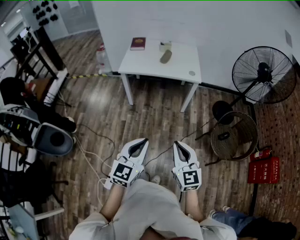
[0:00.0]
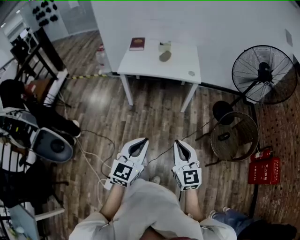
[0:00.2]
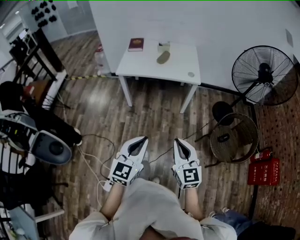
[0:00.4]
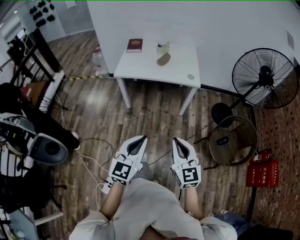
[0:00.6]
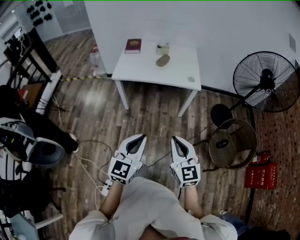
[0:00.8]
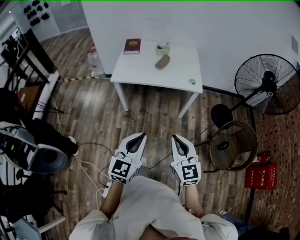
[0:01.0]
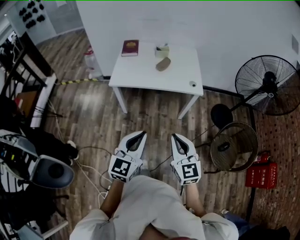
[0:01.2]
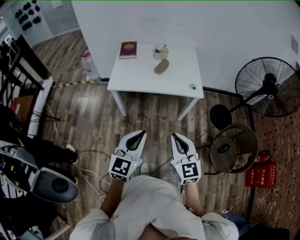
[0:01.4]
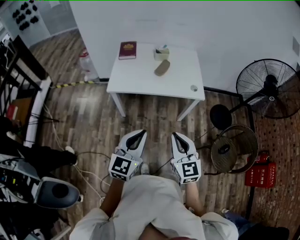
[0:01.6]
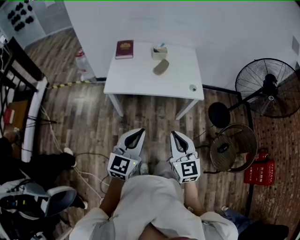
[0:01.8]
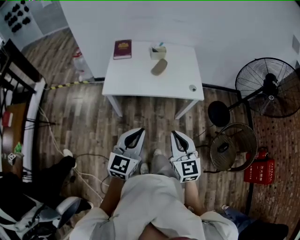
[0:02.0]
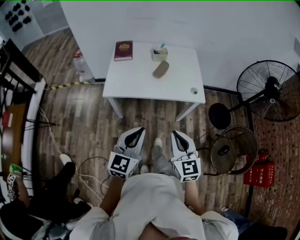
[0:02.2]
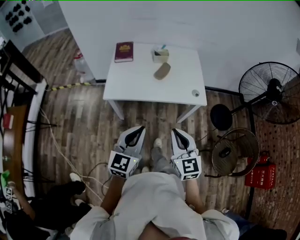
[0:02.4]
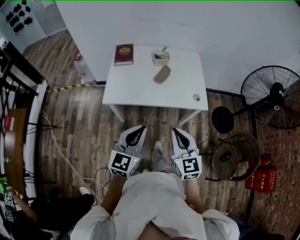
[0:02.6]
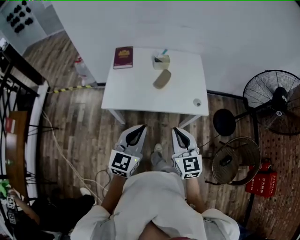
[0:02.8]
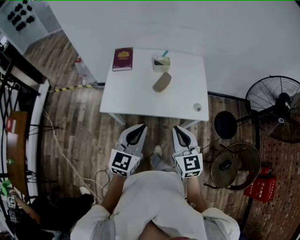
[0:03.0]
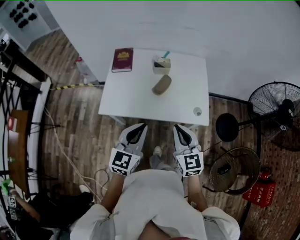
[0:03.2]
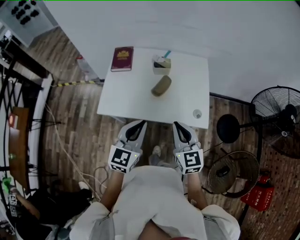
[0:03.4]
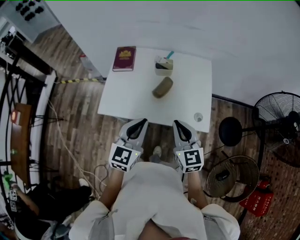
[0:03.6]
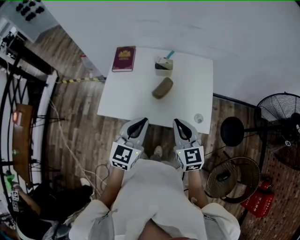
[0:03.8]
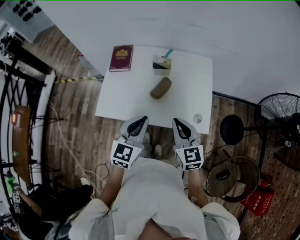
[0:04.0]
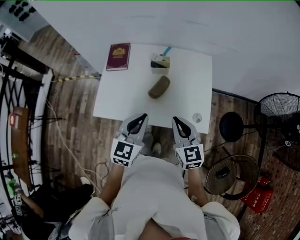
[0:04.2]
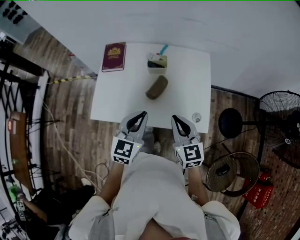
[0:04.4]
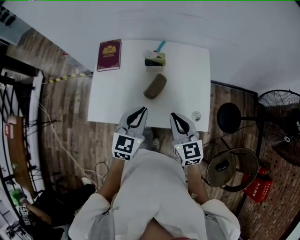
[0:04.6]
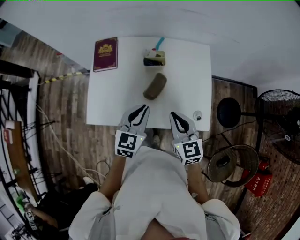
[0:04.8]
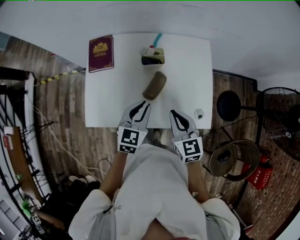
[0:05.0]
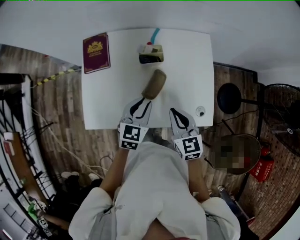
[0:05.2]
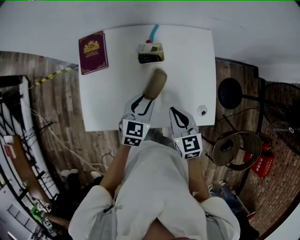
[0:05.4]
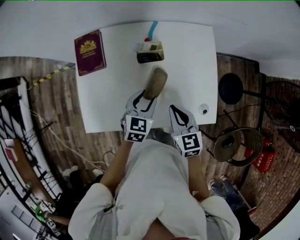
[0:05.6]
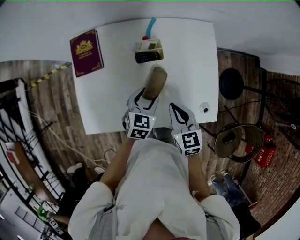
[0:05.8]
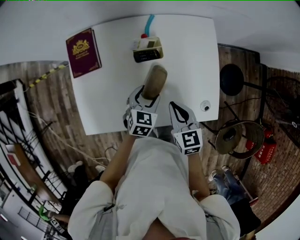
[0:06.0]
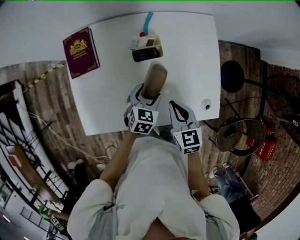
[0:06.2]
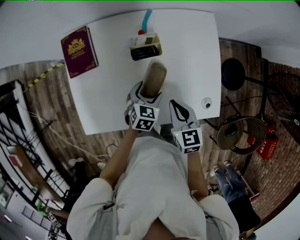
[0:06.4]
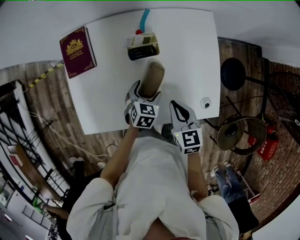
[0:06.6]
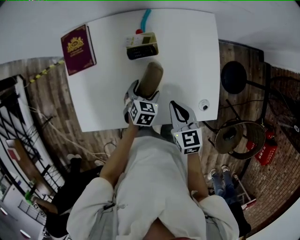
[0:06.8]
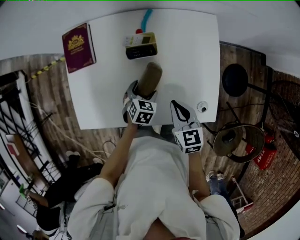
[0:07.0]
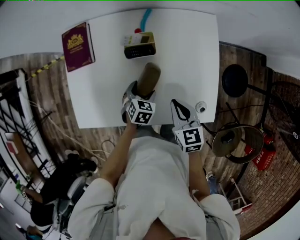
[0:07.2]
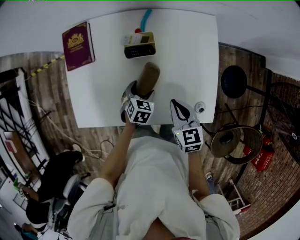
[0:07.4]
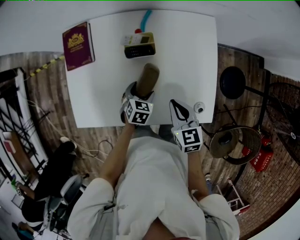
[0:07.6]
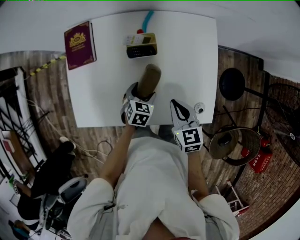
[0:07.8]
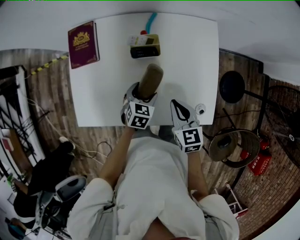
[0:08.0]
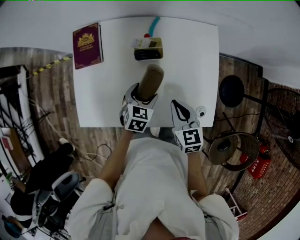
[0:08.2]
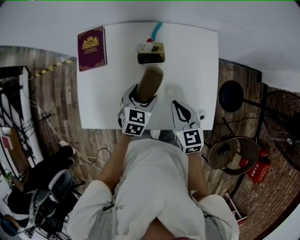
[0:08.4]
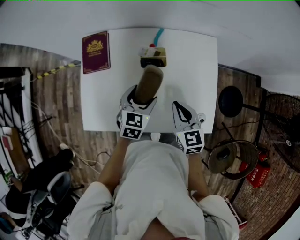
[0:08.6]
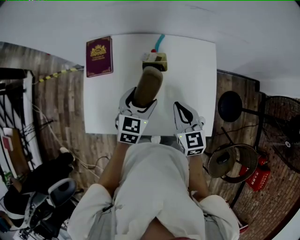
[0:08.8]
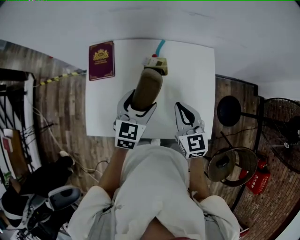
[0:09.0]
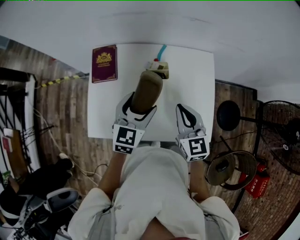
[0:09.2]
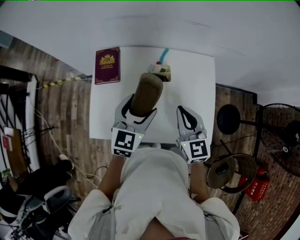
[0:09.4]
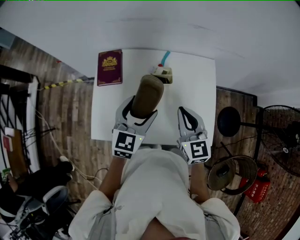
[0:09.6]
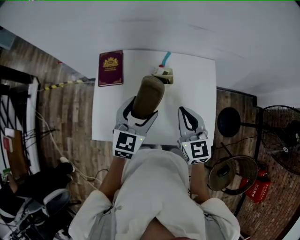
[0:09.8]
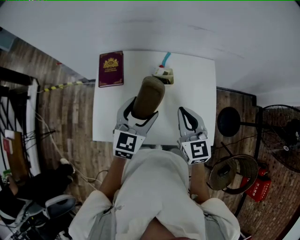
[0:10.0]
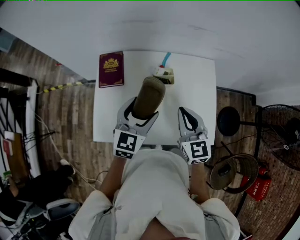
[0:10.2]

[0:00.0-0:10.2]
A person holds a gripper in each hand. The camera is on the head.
0:00.0 to 0:01.4: The two grippers go approximately 25 cm forward.
0:01.4 to 0:03.0: The grippers both shift forward by roughly 25 cm.
0:03.0 to 0:04.4: Both grippers move forward, some 15 cm.
0:04.4 to 0:05.8: The right gripper travels downward and forward by roughly 15 cm, and swivels approximately 20 degrees. Meanwhile the left gripper shifts approximately 25 cm downward and forward, turns by approximately 30 degrees, and opens up.
0:05.8 to 0:07.2: The left gripper goes roughly 10 cm downward. Meanwhile the right gripper ends up some 5 cm from where it was.
0:07.2 to 0:08.8: The right gripper goes roughly 10 cm upward. The left gripper goes roughly 20 cm upward, and rotates some 30 degrees.
0:08.8 to 0:10.2: The two grippers go roughly 10 cm upward.

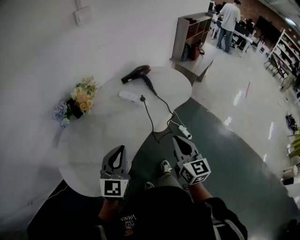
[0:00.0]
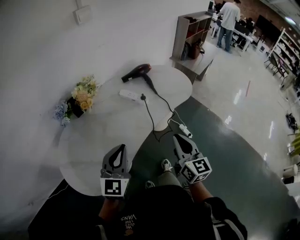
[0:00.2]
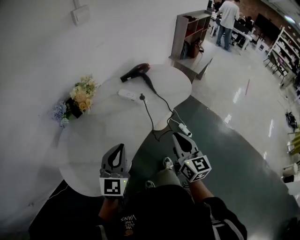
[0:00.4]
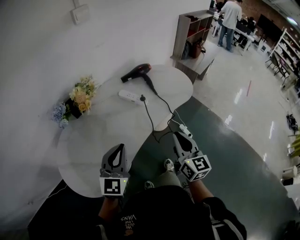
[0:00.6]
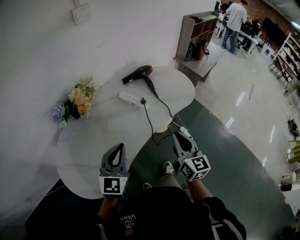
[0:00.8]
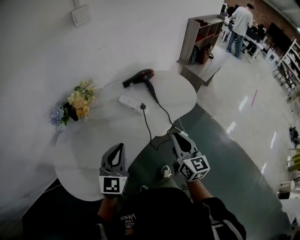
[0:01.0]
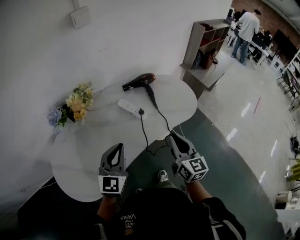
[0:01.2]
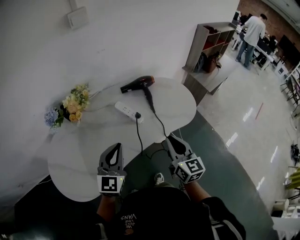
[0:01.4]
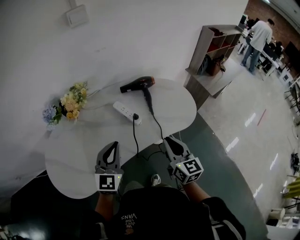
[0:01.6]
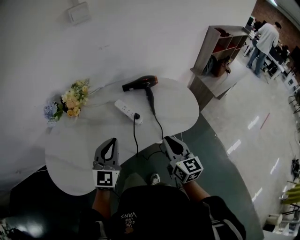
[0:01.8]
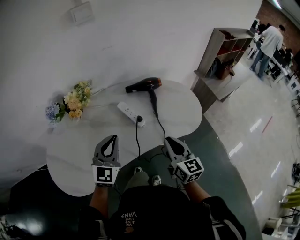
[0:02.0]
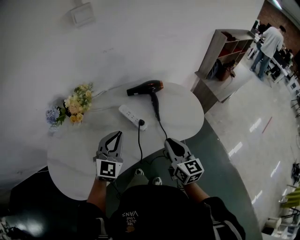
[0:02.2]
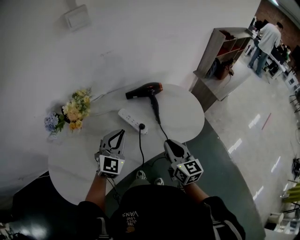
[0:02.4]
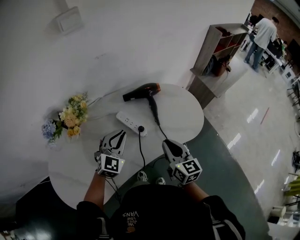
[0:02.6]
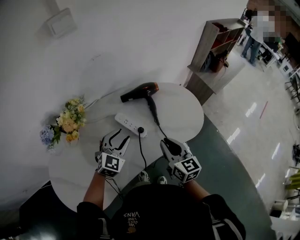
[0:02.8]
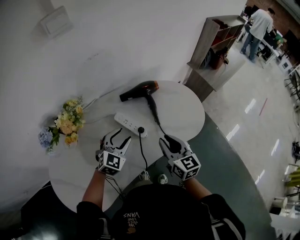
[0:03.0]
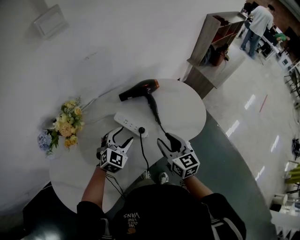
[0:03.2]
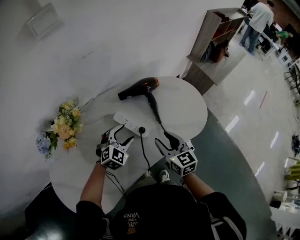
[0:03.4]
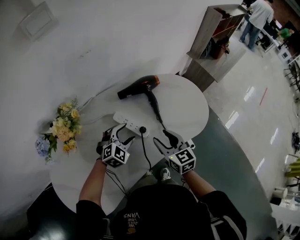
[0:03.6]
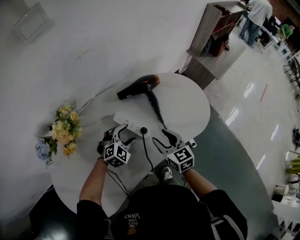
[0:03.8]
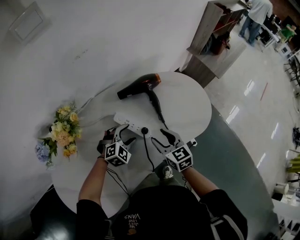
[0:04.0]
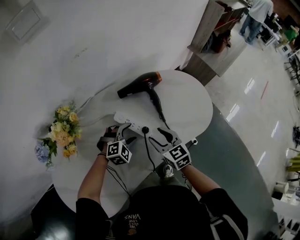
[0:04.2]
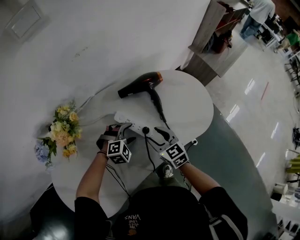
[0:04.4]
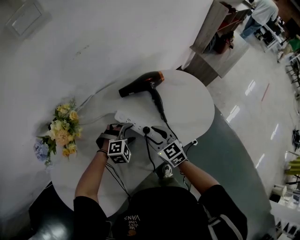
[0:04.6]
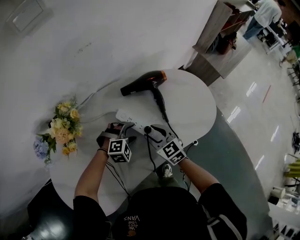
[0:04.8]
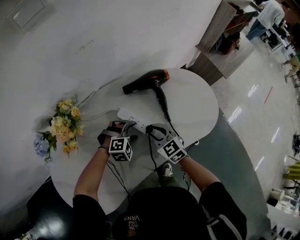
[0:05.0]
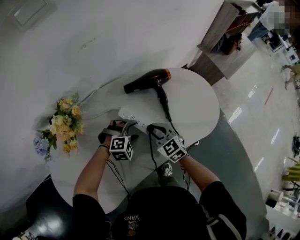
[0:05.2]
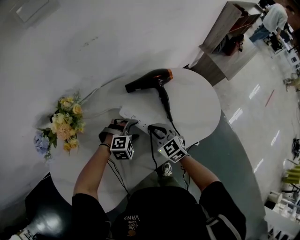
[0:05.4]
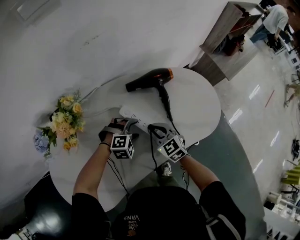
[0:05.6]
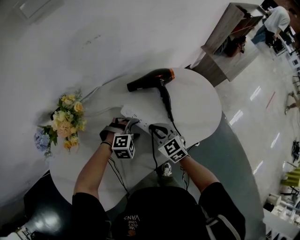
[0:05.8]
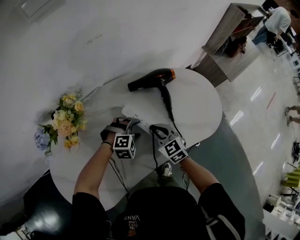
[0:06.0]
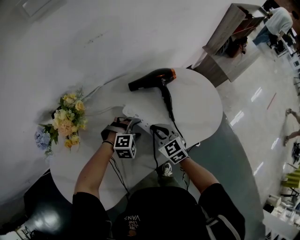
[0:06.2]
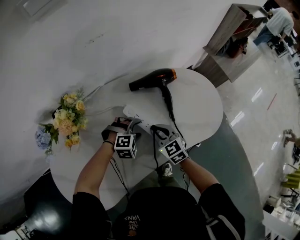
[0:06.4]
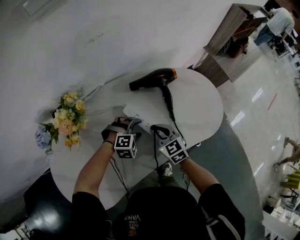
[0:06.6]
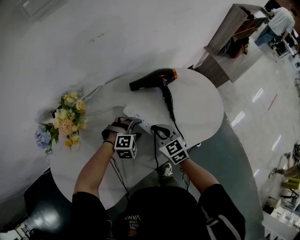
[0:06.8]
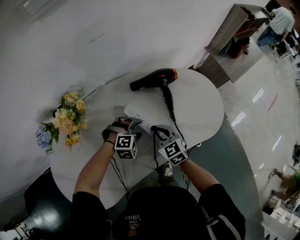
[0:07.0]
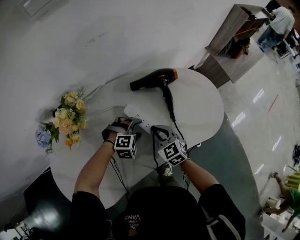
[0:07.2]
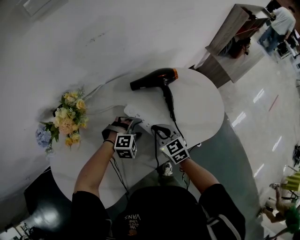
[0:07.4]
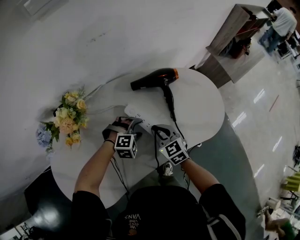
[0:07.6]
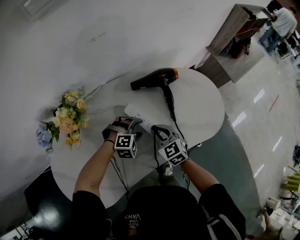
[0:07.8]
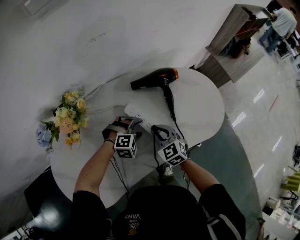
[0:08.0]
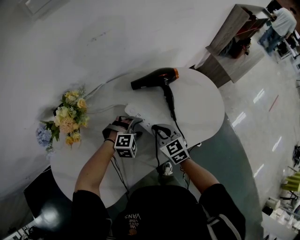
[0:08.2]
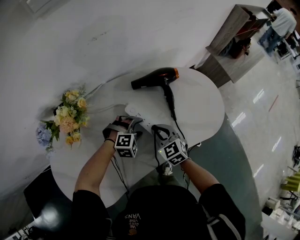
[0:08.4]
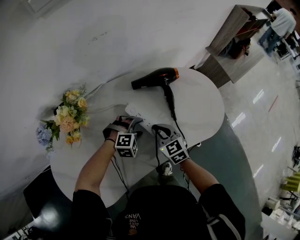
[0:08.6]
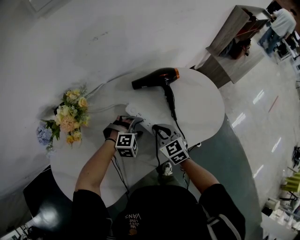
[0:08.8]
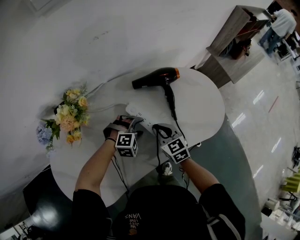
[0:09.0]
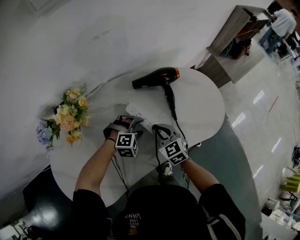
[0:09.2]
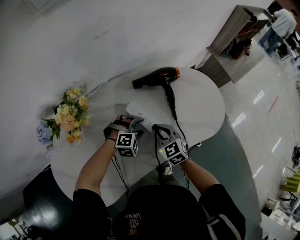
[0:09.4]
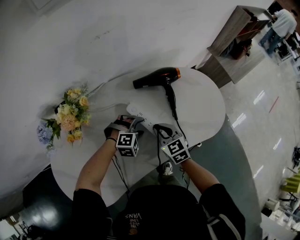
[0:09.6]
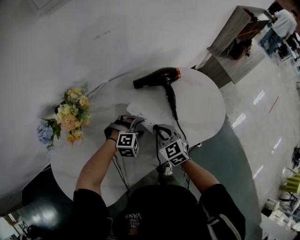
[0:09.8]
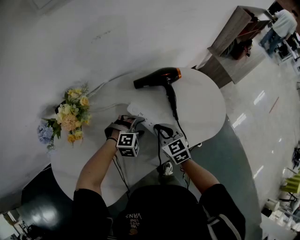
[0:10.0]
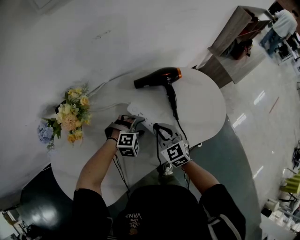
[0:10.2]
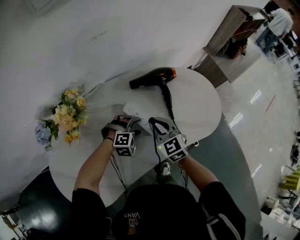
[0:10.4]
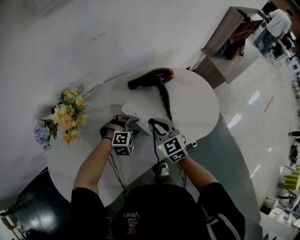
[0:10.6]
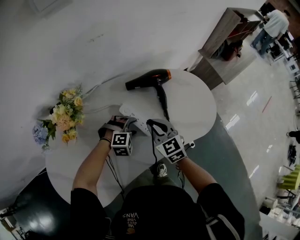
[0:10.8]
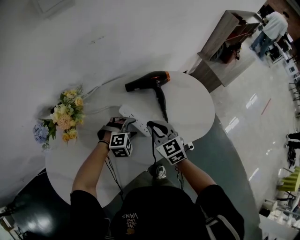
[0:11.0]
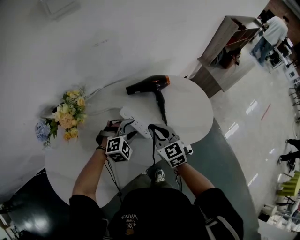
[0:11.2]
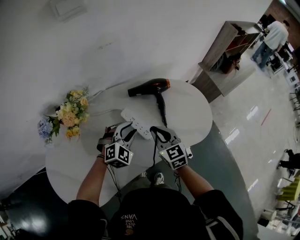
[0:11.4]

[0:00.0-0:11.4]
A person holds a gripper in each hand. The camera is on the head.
0:00.0 to 0:01.4: Both grippers travel together forward and to the right, roughly 20 cm.
0:01.4 to 0:02.8: The left gripper heads forward and downward, covering some 20 cm, changes its angle by some 30 degrees, and opens up. Meanwhile the right gripper shifts roughly 15 cm forward and downward.
0:02.8 to 0:04.2: The right gripper moves downward, forward and to the left, about 15 cm, and opens; the left gripper heads downward, covering about 15 cm, rotates some 40 degrees, and opens.
0:04.2 to 0:05.6: The right gripper ends up about 5 cm from where it was, rotates some 20 degrees, and closes its fingers.
0:05.6 to 0:10.0: There are only small adjustments of the grippers.
0:10.0 to 0:11.4: Both grippers move upward, about 10 cm. The left gripper swivels approximately 30 degrees.

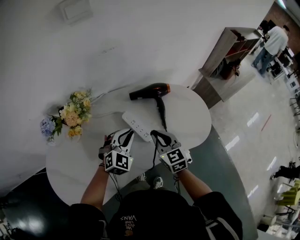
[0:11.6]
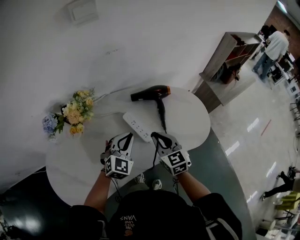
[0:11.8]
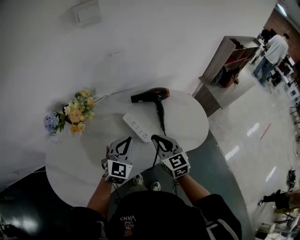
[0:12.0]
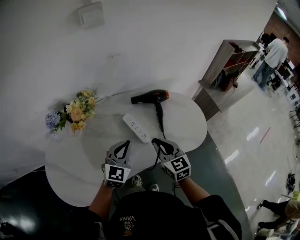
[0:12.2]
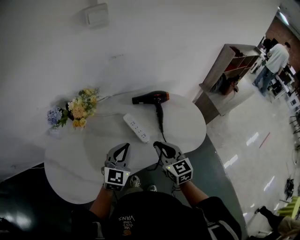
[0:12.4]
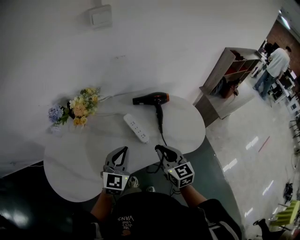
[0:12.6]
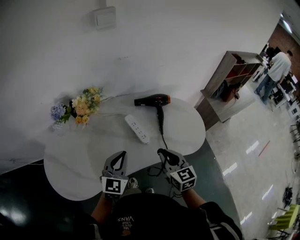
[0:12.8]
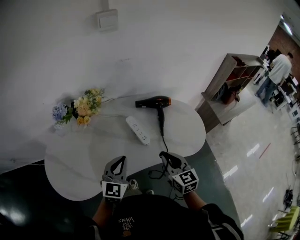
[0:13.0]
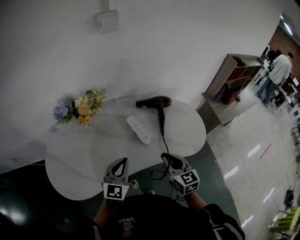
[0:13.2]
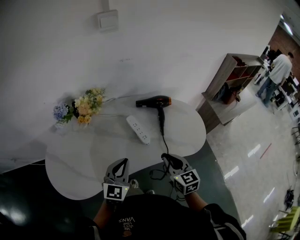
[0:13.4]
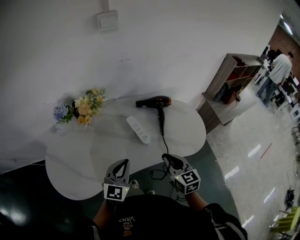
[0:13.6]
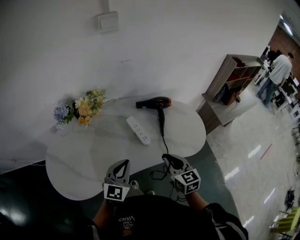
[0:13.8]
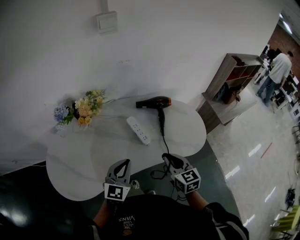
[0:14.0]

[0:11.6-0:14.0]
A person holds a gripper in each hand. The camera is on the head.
0:11.6 to 0:12.8: Both grippers move backward and upward, roughly 15 cm. The left gripper turns by some 30 degrees.
0:12.8 to 0:14.0: The grippers make only small movements.
